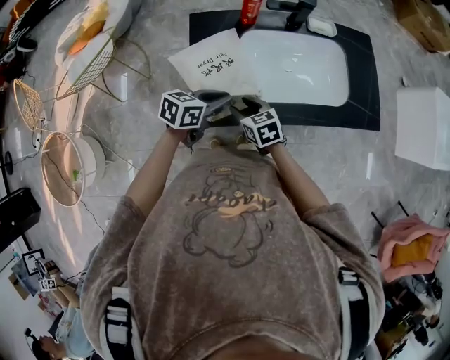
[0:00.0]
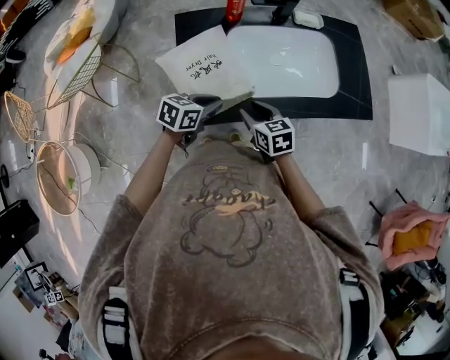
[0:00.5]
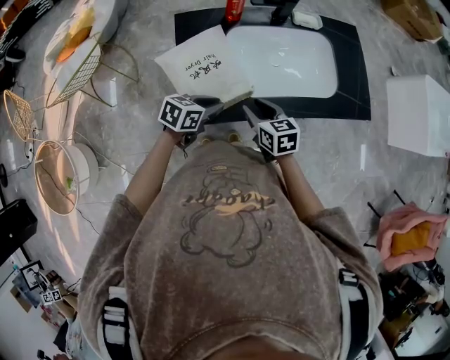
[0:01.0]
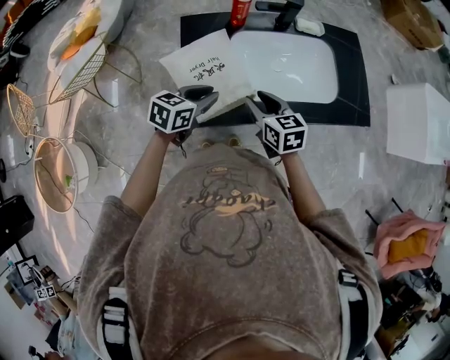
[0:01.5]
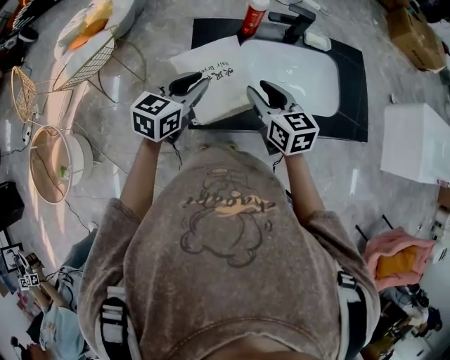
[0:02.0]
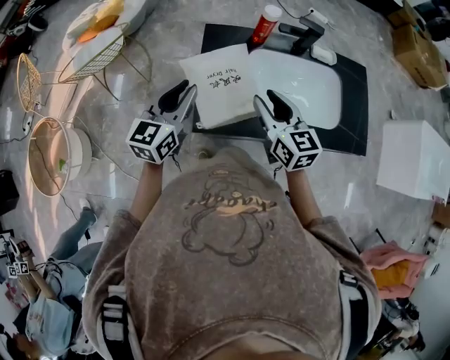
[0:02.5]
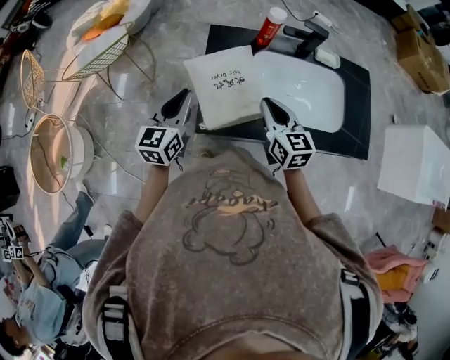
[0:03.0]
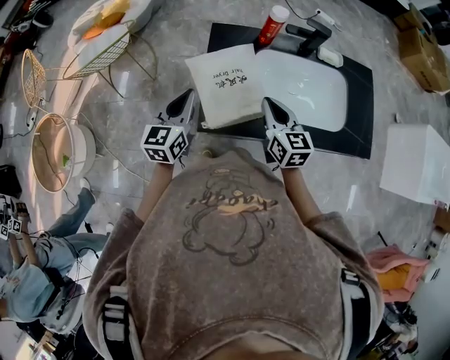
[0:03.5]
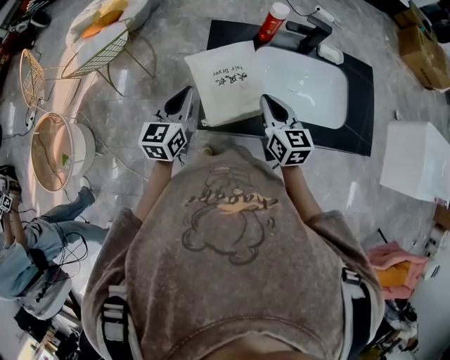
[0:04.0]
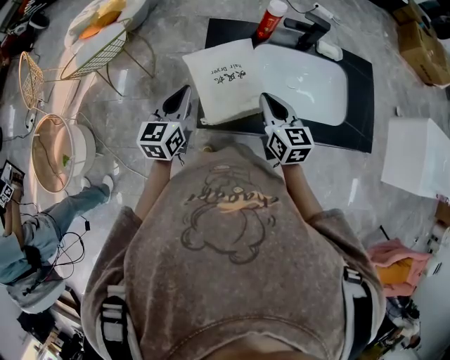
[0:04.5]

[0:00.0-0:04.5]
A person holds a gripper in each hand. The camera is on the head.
0:00.0 to 0:02.0: The right gripper goes about 15 cm upward, and rotates about 20 degrees. The left gripper goes some 15 cm upward and to the left, and swivels roughly 30 degrees.
0:02.0 to 0:04.5: The left gripper is displaced to the left by some 10 cm, and swivels some 30 degrees. Meanwhile the right gripper closes its fingers.

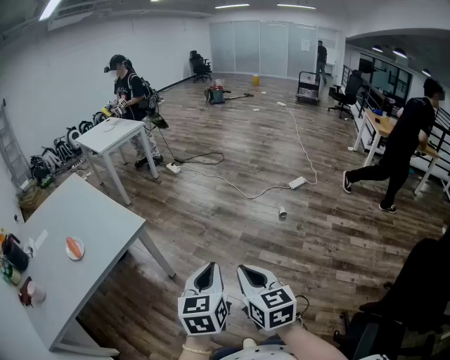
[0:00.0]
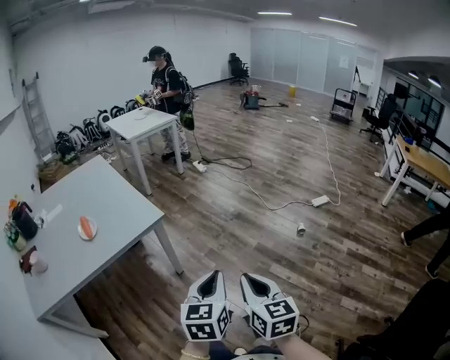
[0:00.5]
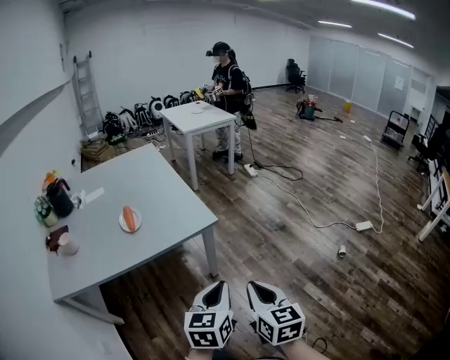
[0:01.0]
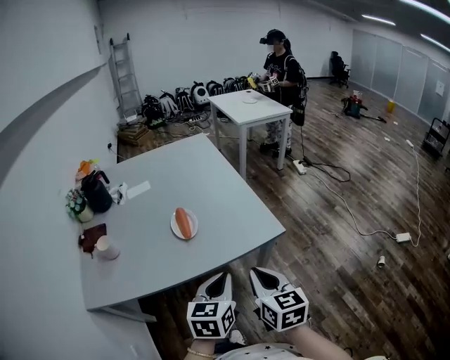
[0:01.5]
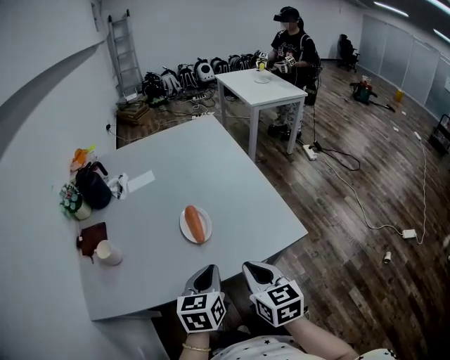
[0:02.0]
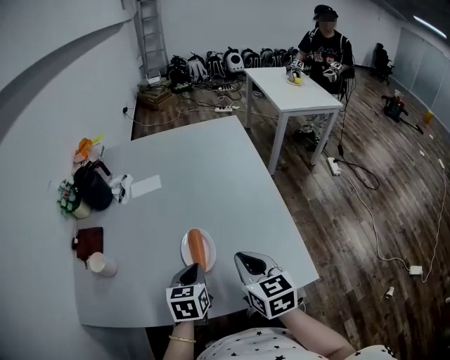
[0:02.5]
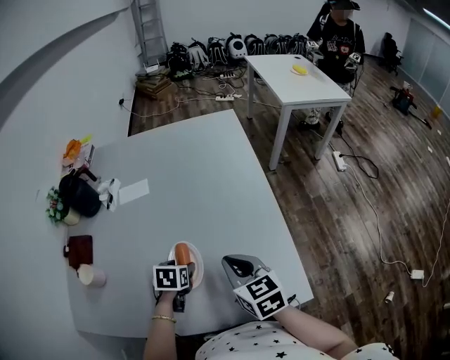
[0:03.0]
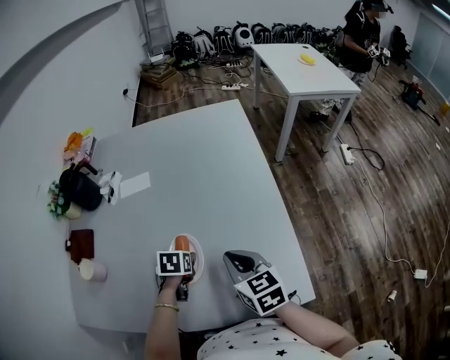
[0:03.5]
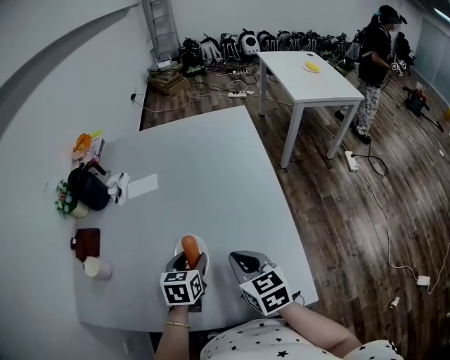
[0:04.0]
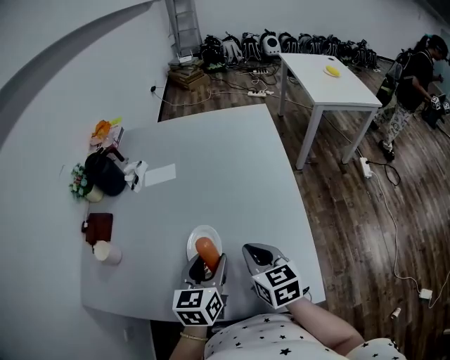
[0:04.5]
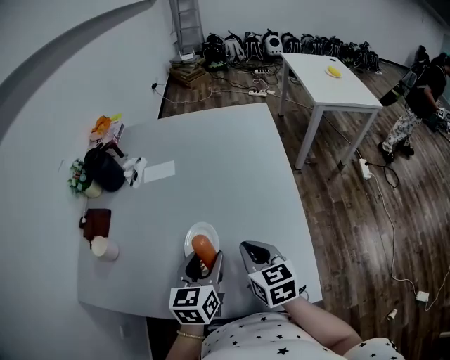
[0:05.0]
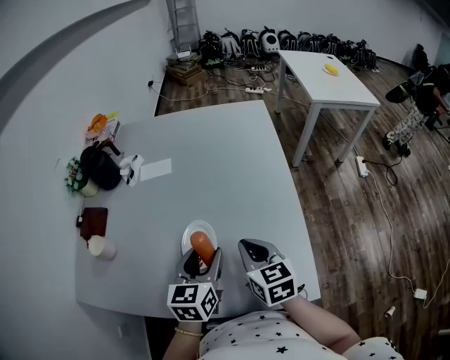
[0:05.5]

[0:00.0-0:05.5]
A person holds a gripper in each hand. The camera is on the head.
0:00.0 to 0:02.0: The pair of grippers is taken about 60 cm. The left gripper turns by approximately 40 degrees. Meanwhile the right gripper swivels some 40 degrees.
0:02.0 to 0:03.5: The right gripper is displaced forward by approximately 25 cm, and rotates some 20 degrees; the left gripper is displaced forward and downward by approximately 35 cm, points its fingers roughly 40 degrees further downward, and opens its fingers.
0:03.5 to 0:05.5: The left gripper goes roughly 20 cm upward and backward, and tilts its fingers some 40 degrees upward.

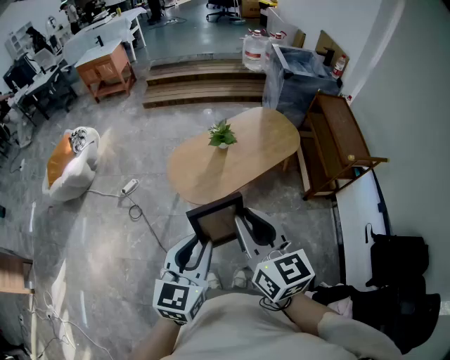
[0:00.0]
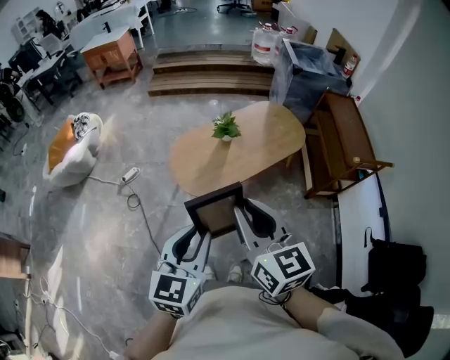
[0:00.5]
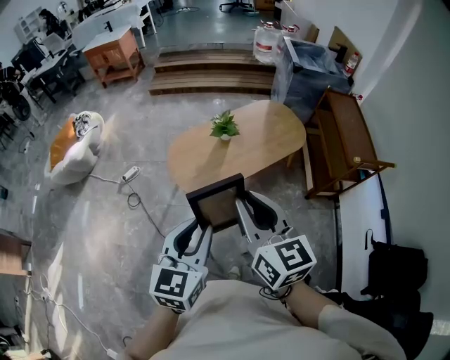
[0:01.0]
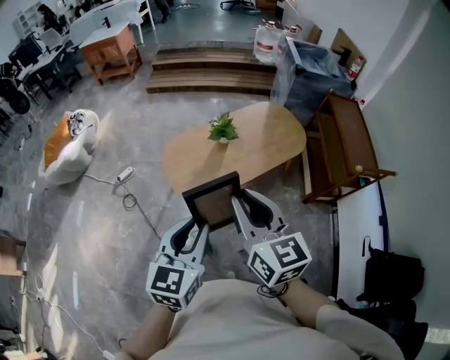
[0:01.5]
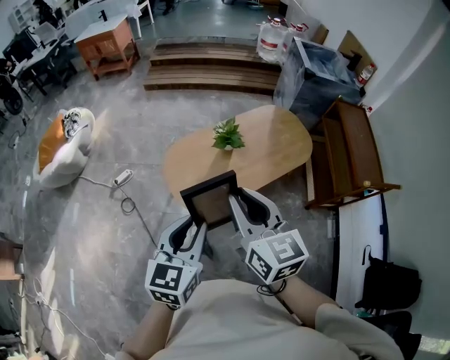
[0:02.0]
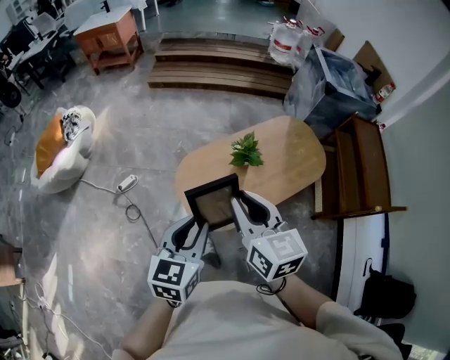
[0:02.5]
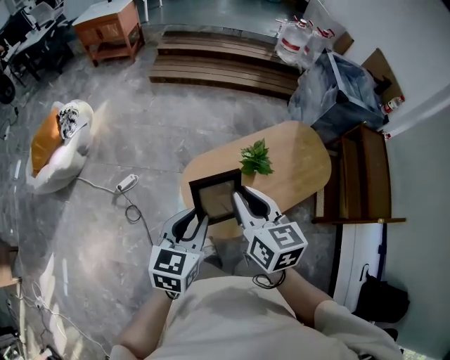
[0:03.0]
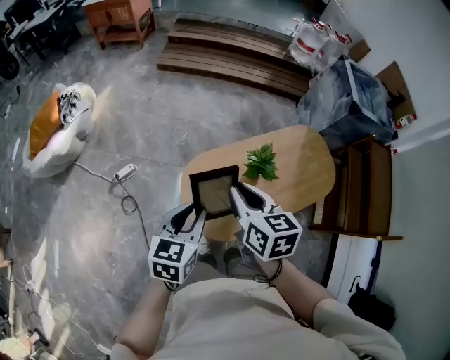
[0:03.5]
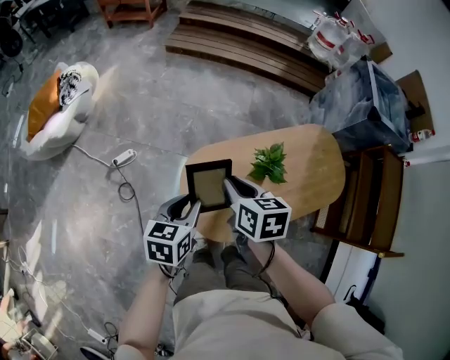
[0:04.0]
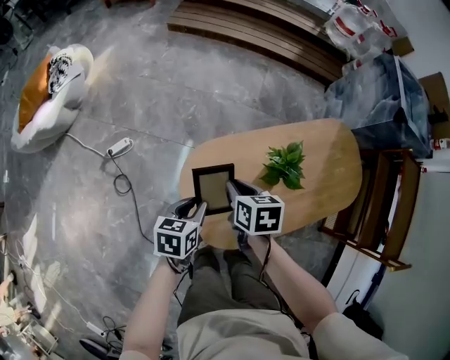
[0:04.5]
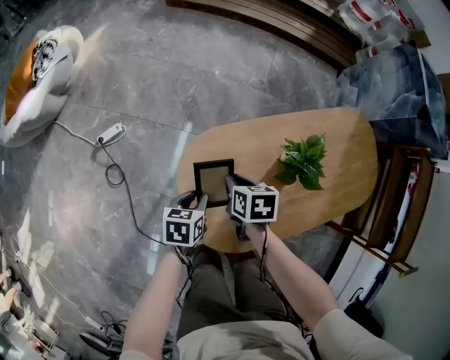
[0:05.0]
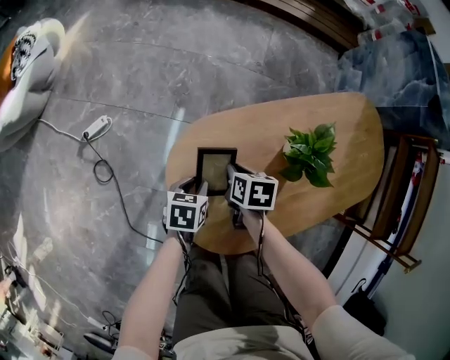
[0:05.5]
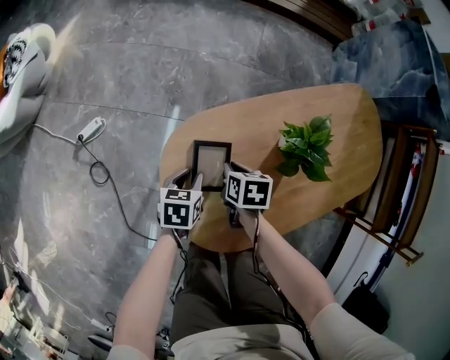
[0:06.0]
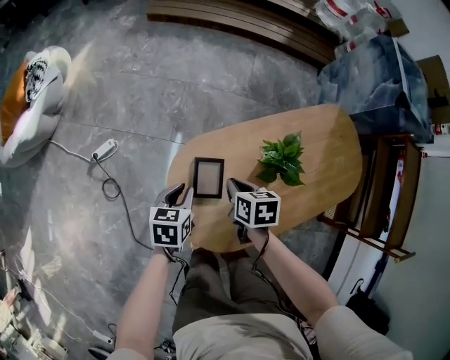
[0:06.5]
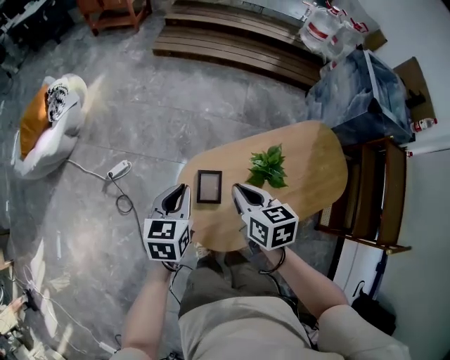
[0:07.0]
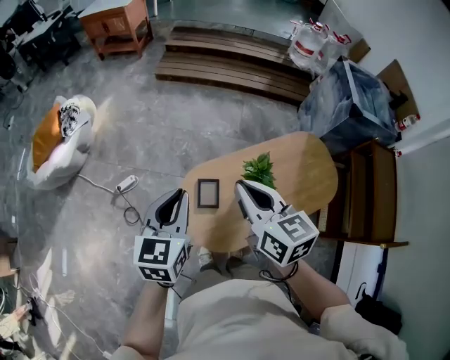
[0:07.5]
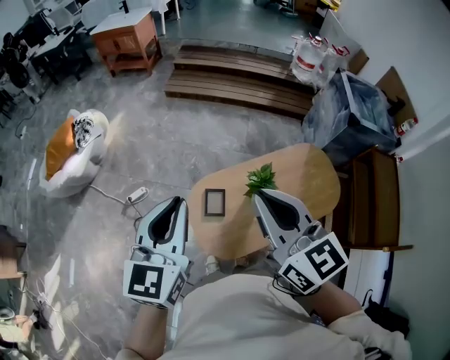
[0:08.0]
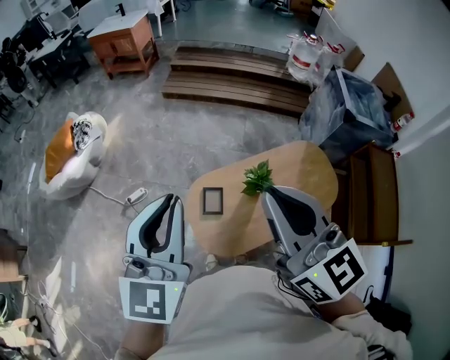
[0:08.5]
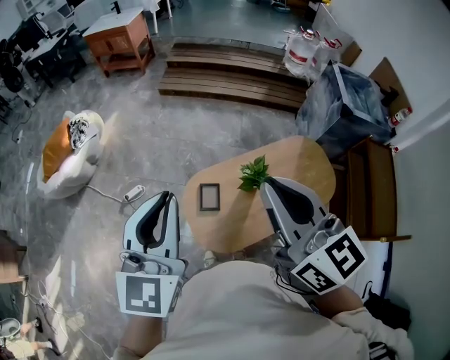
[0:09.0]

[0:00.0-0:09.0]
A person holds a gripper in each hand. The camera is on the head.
0:00.0 to 0:02.0: Both grippers travel together forward, some 20 cm.
0:02.0 to 0:04.5: The two grippers go about 60 cm downward, forward and to the left. The left gripper turns by about 40 degrees. Meanwhile the right gripper tilts its fingers some 40 degrees downward.
0:04.5 to 0:07.0: The left gripper is displaced upward and forward by approximately 15 cm, and rotates roughly 20 degrees. The right gripper travels downward and back again, roughly 25 cm each way.
0:07.0 to 0:09.0: Both grippers move upward, roughly 40 cm. The right gripper tips its fingers upward by roughly 30 degrees, while the left gripper turns by about 30 degrees.

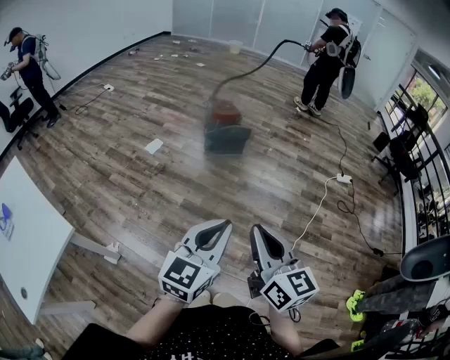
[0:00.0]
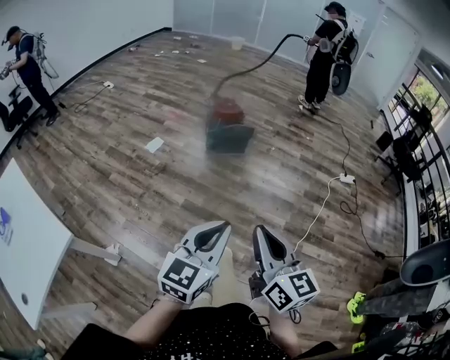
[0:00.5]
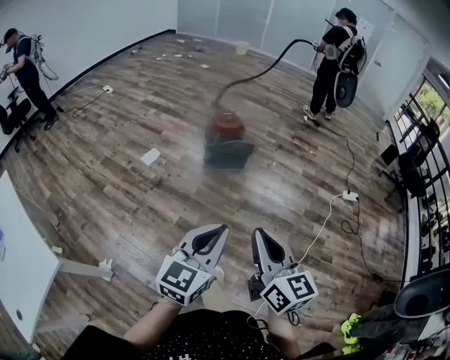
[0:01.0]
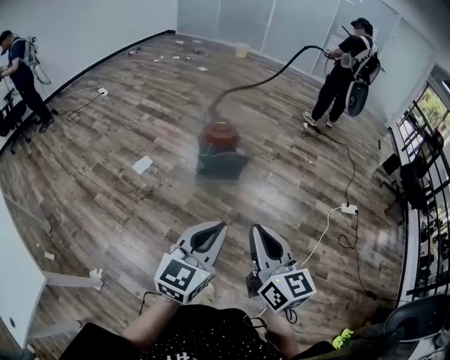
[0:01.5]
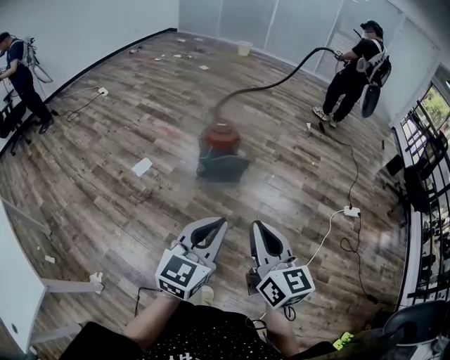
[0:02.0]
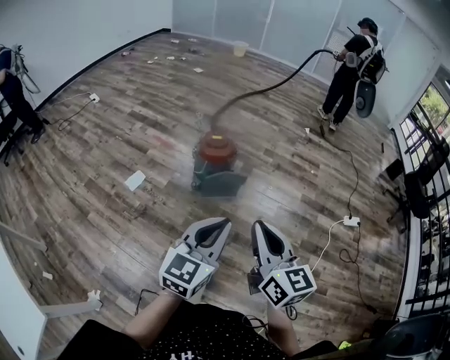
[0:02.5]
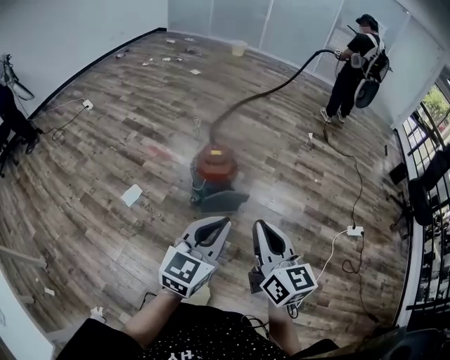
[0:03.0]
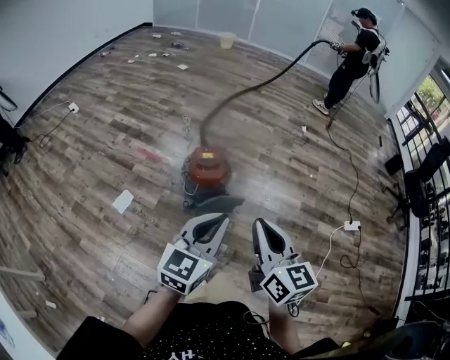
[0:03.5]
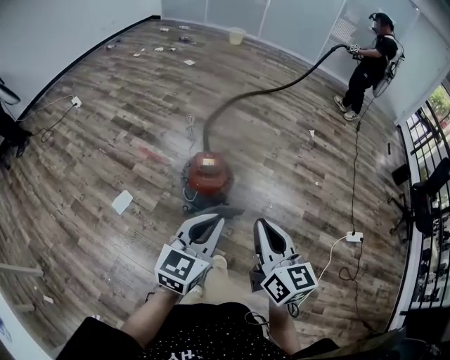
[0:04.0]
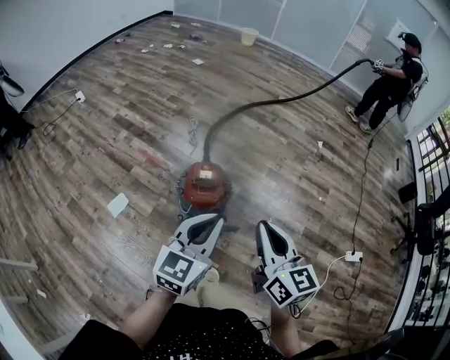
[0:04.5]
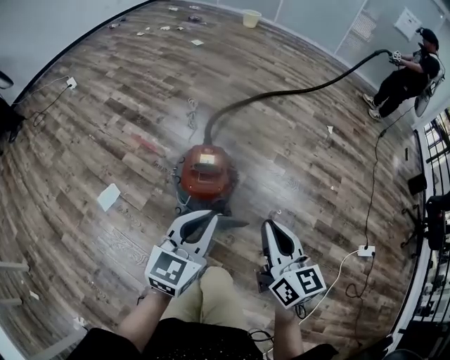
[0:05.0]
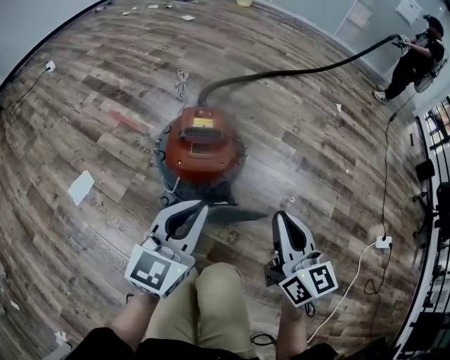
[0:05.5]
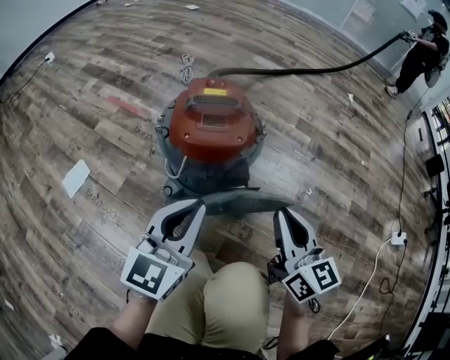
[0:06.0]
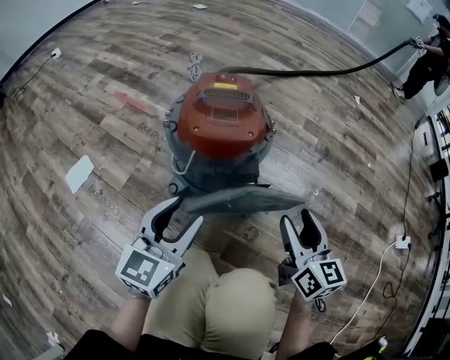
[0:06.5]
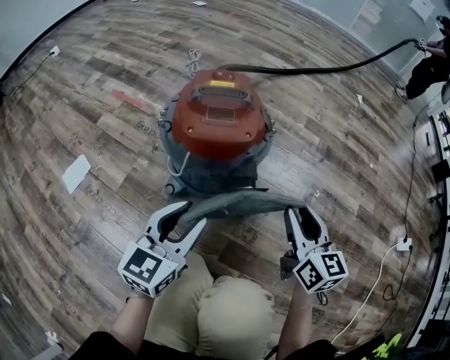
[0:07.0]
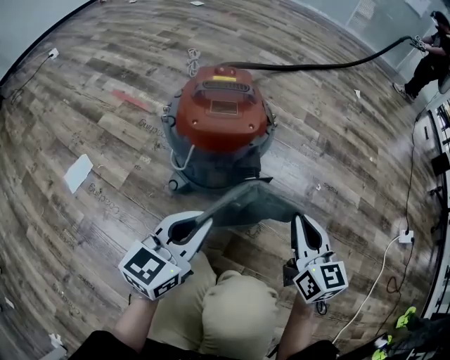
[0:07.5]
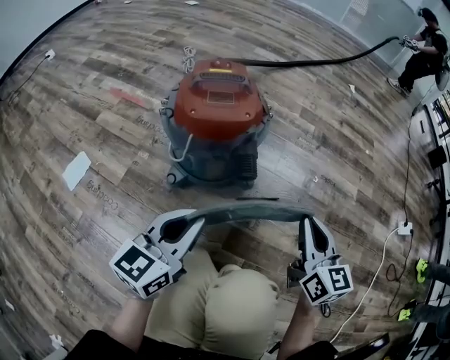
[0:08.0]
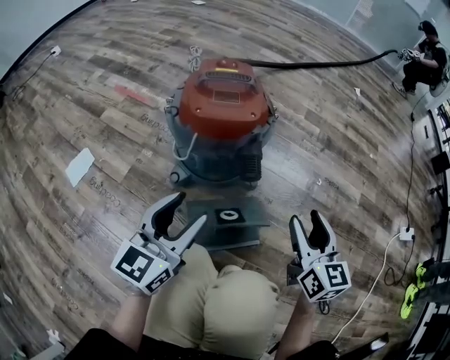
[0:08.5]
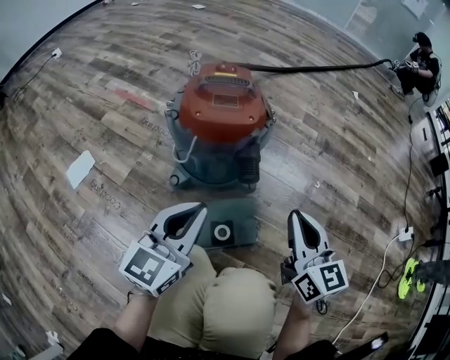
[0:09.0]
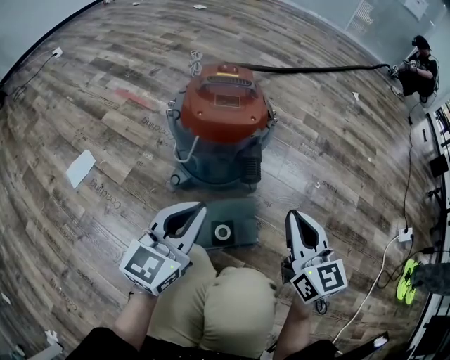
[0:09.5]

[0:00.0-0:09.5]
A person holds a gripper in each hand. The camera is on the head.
0:00.0 to 0:02.0: The grippers both shift forward by roughly 35 cm.
0:02.0 to 0:04.0: Both grippers are carried forward, some 40 cm.
0:04.0 to 0:05.5: The grippers both shift downward and forward by approximately 40 cm.
0:05.5 to 0:07.5: Both grippers move downward, approximately 20 cm. The right gripper opens, then closes once more. The left gripper opens and closes again.
0:07.5 to 0:09.5: The right gripper opens and closes again. Meanwhile the left gripper opens and closes again.
